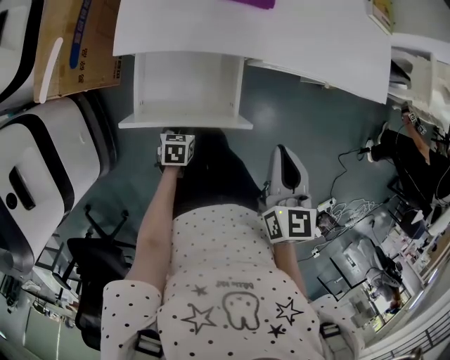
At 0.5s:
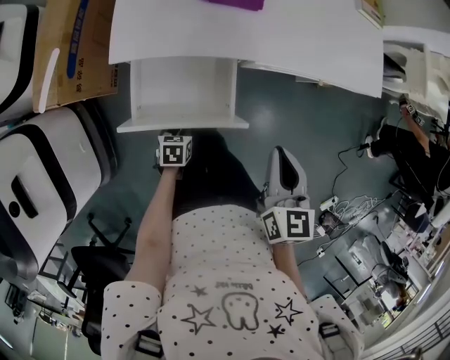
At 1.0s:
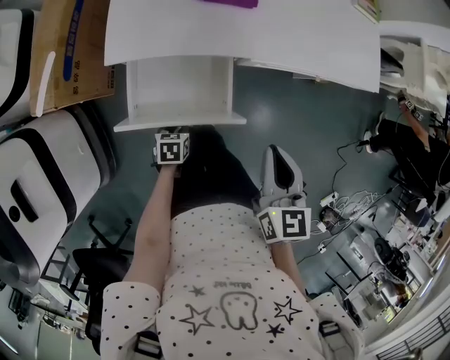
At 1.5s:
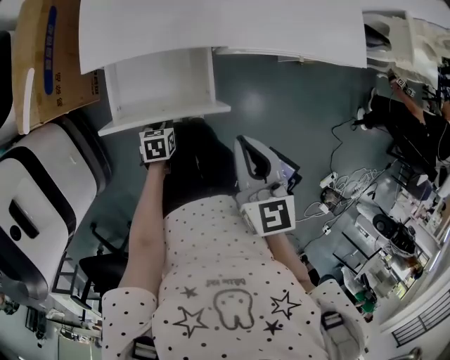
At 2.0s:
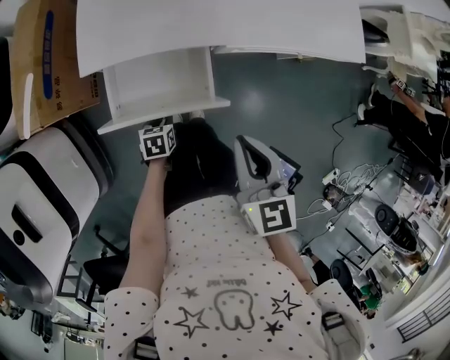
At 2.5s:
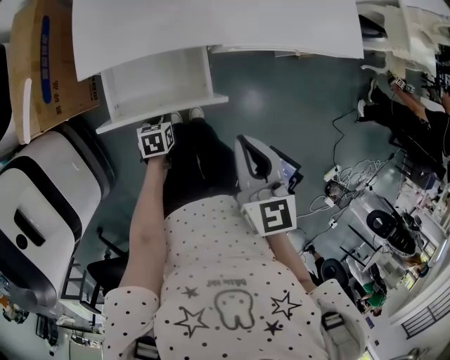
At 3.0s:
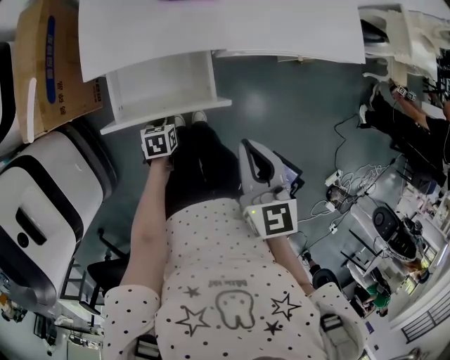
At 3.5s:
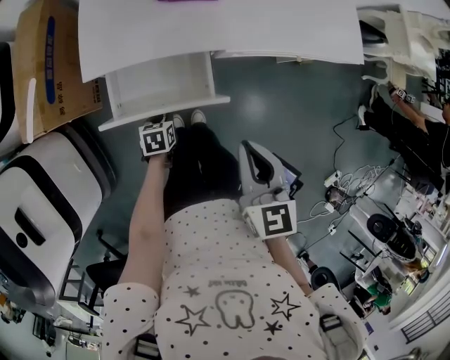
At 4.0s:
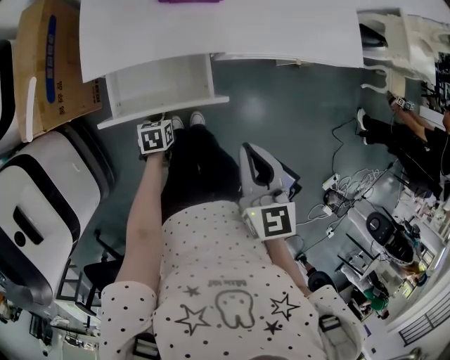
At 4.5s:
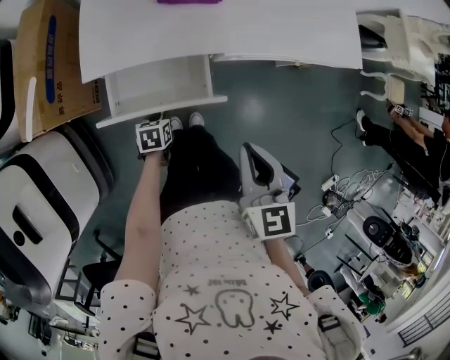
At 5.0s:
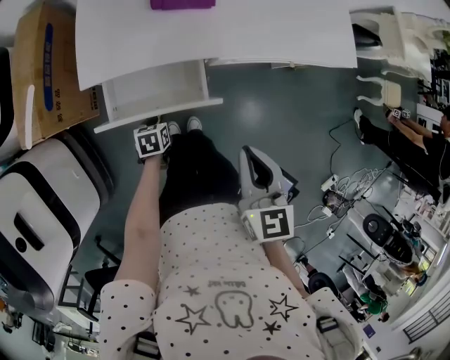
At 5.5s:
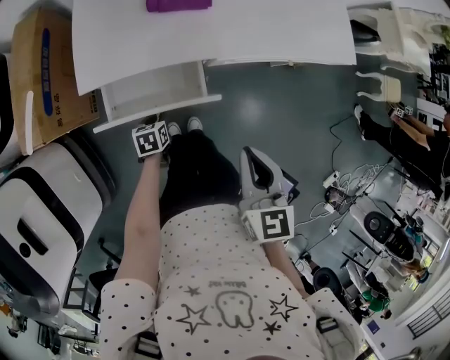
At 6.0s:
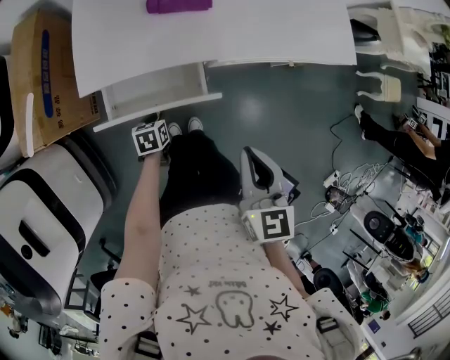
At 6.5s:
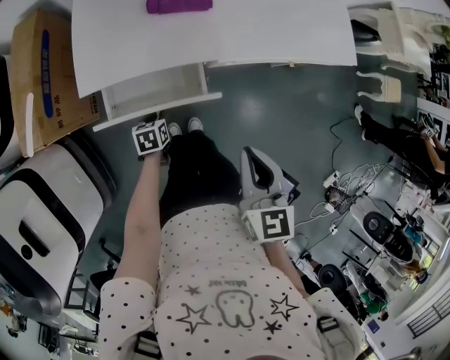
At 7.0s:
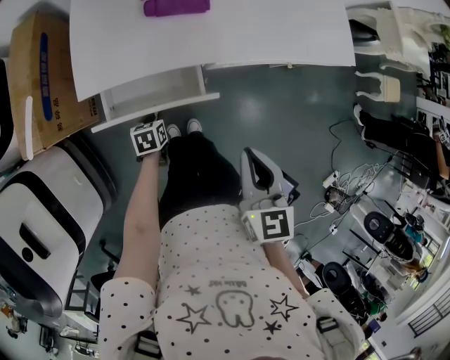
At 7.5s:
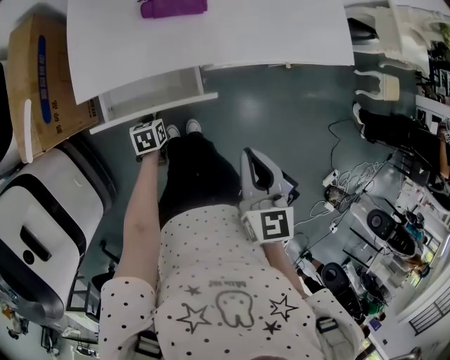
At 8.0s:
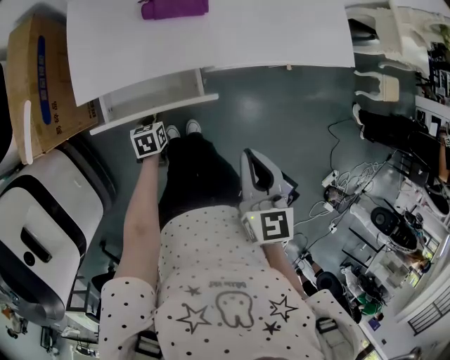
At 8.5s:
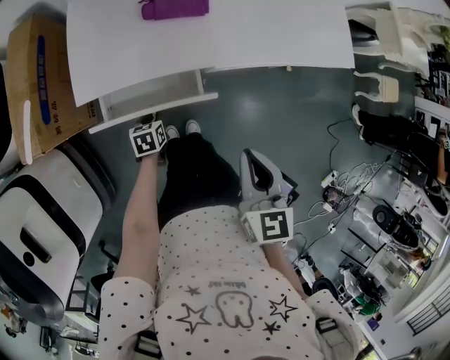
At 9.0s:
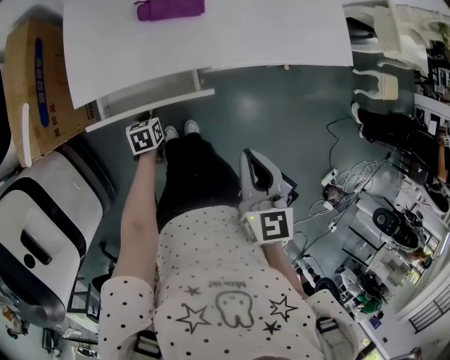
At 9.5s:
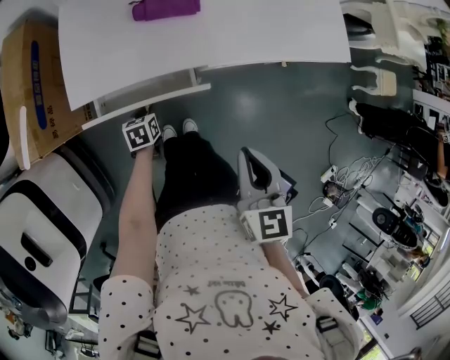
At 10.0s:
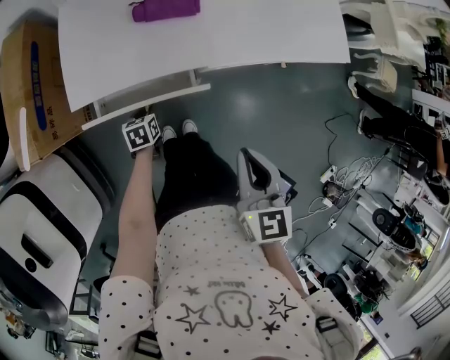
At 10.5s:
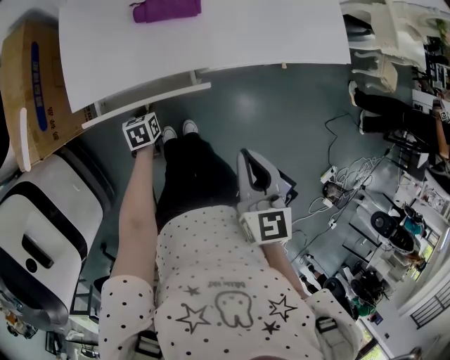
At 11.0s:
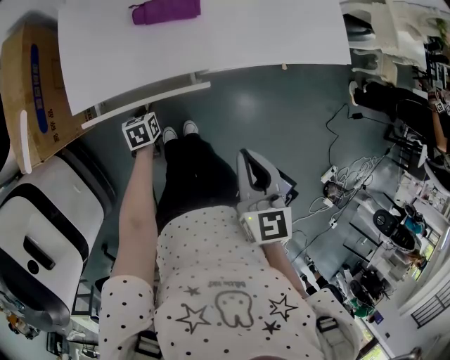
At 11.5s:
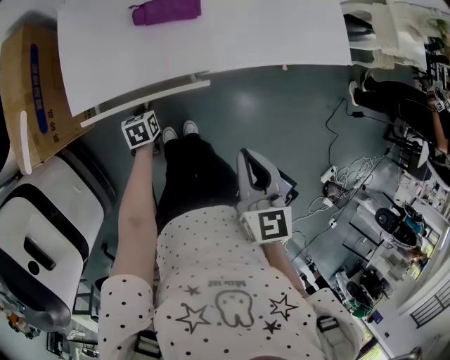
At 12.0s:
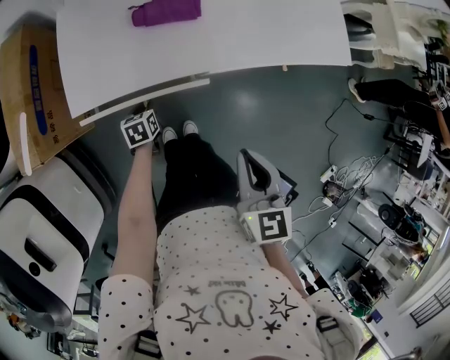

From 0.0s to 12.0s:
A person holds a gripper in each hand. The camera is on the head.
From 0.0s to 2.0s: The right gripper ends up some 5 cm from where it was.
From 2.0s to 4.0s: The grippers stay close to where they were, moving slightly.
From 4.0s to 8.0s: There are only small adjustments of the grippers.
From 8.0s to 12.0s: The grippers move only a little.

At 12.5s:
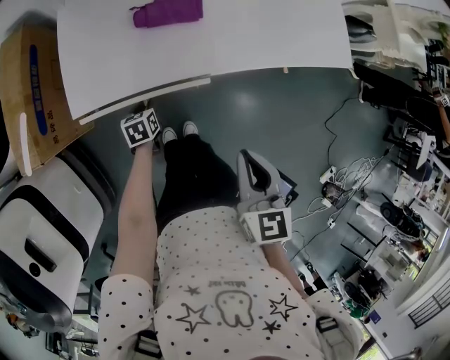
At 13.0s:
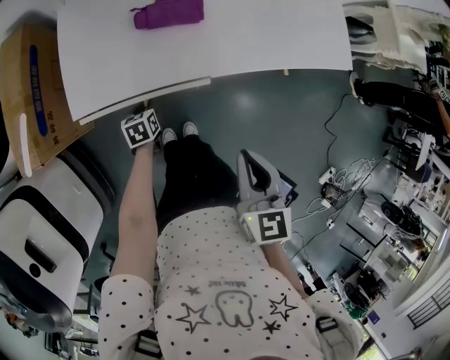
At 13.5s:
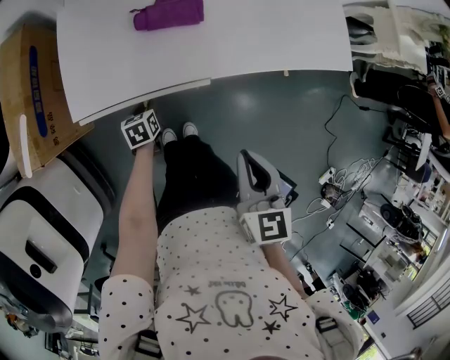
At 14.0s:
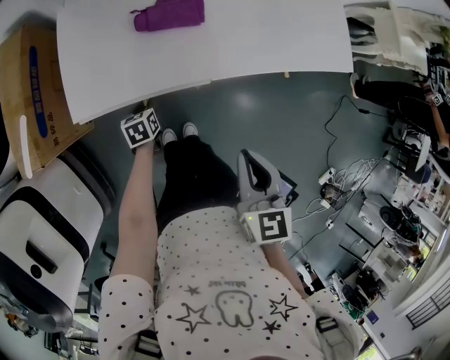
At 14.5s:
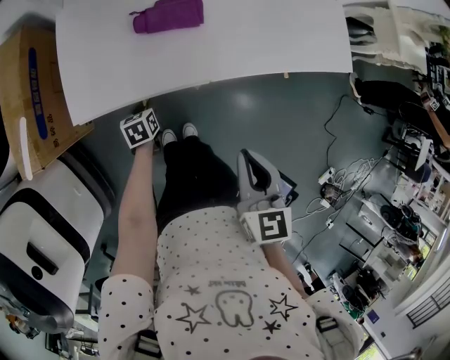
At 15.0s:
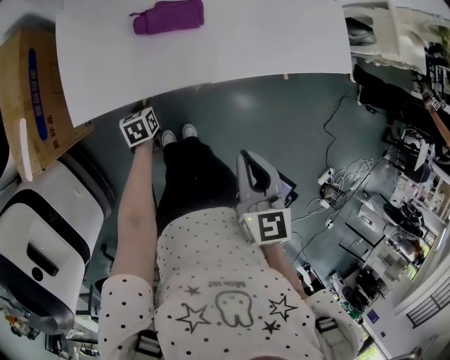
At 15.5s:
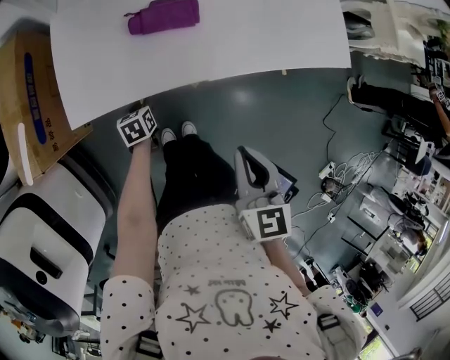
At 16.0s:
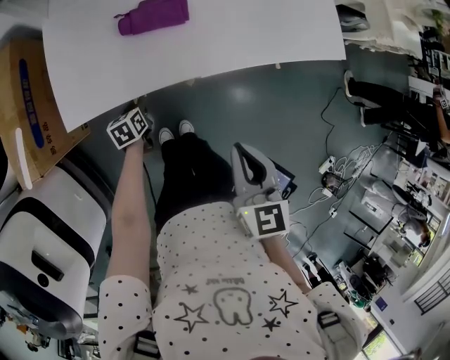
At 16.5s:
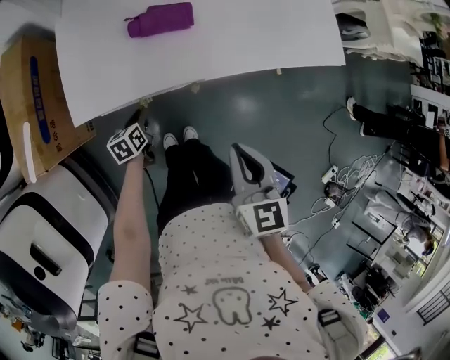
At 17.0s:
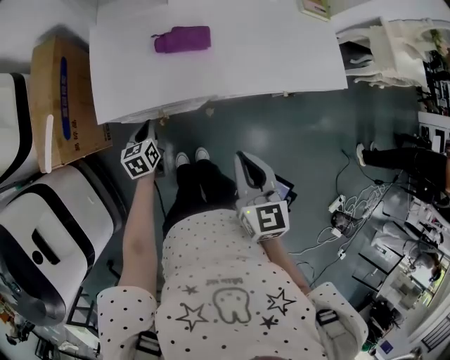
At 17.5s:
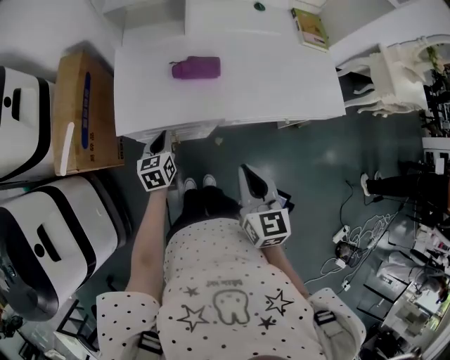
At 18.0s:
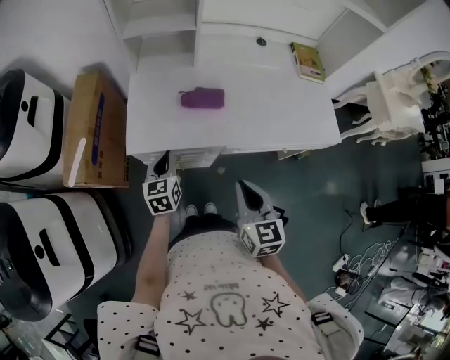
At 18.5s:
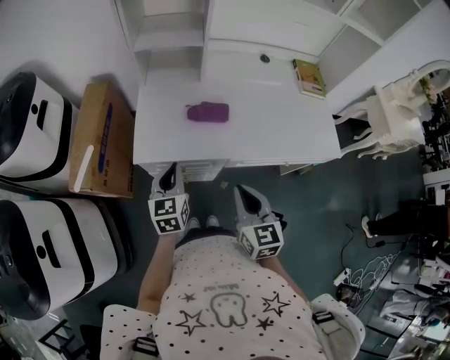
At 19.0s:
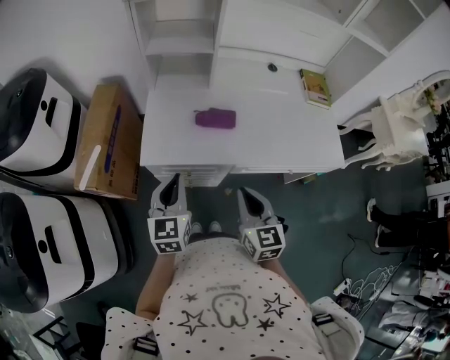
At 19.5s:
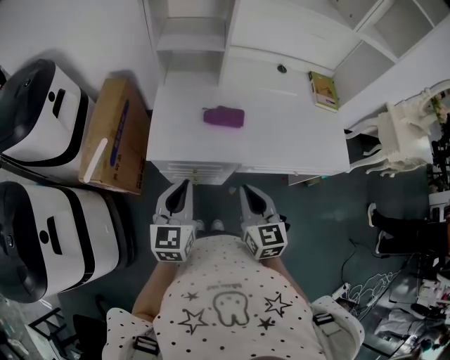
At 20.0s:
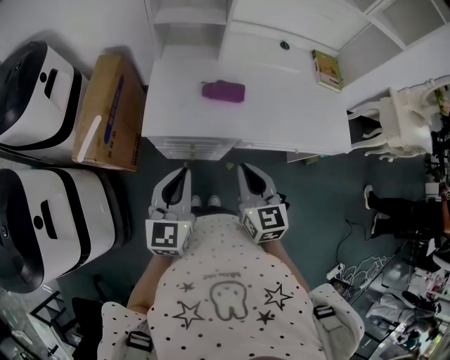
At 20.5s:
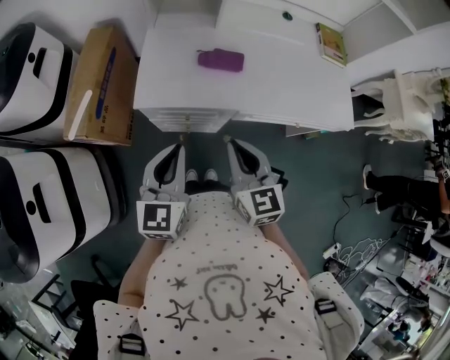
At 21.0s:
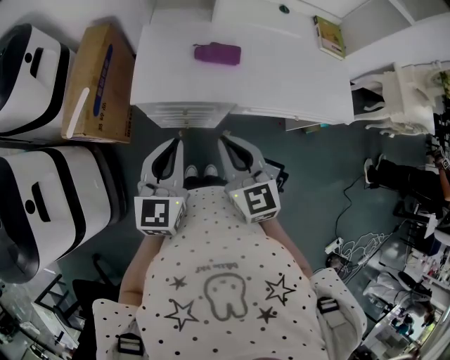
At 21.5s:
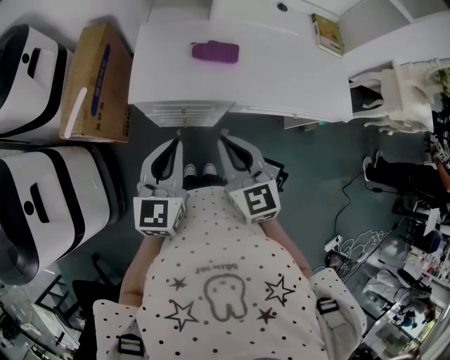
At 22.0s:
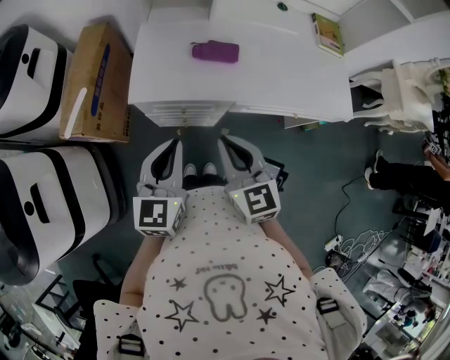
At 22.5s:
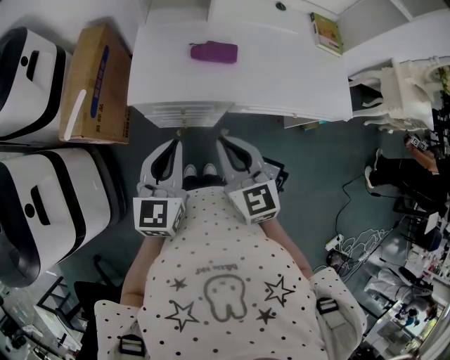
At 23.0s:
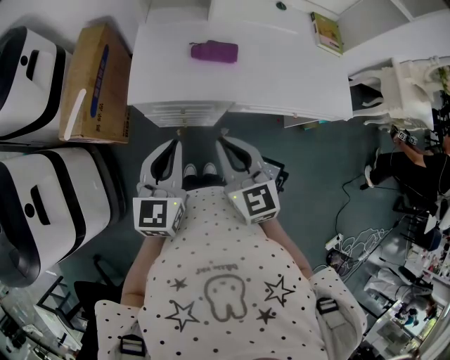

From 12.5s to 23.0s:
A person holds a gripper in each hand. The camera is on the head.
From 12.5s to 16.5s: The grippers stay close to where they were, moving slightly.
From 16.5s to 19.0s: The right gripper heads upward, covering some 5 cm; the left gripper shifts about 35 cm upward, and tilts its fingers approximately 30 degrees upward.
From 19.0s to 21.0s: The left gripper shifts some 5 cm backward. Meanwhile the right gripper heads to the left, covering about 5 cm.
From 21.0s to 23.0s: Both grippers stay about where they are.

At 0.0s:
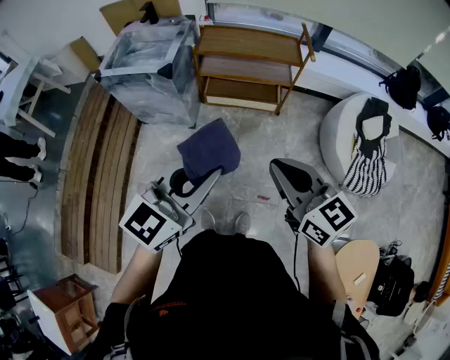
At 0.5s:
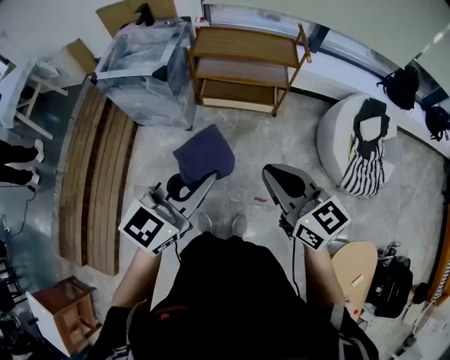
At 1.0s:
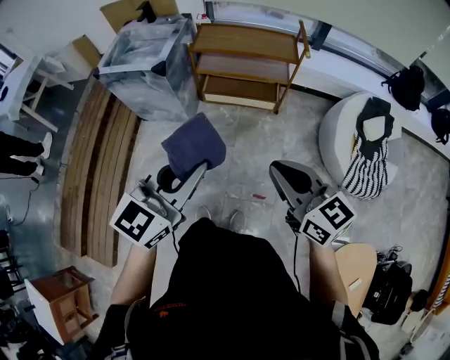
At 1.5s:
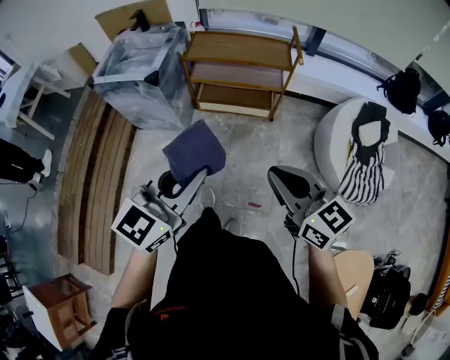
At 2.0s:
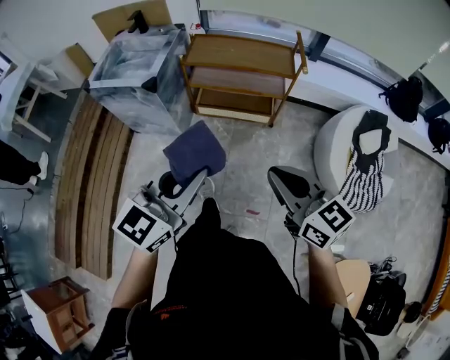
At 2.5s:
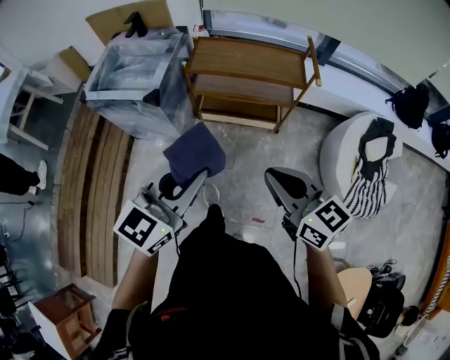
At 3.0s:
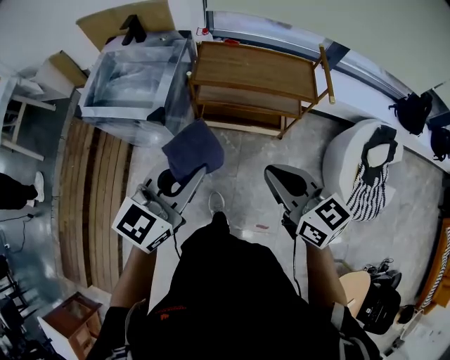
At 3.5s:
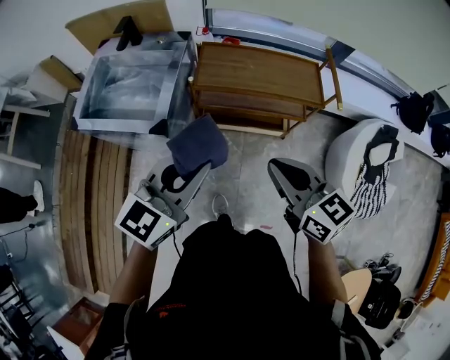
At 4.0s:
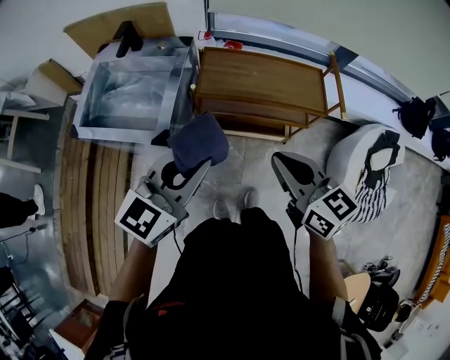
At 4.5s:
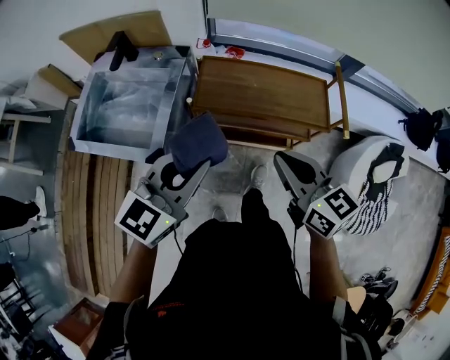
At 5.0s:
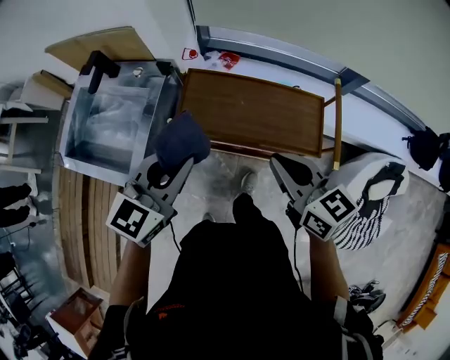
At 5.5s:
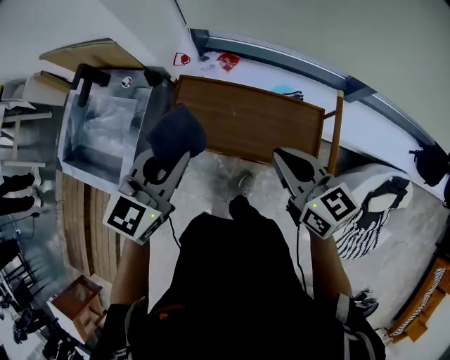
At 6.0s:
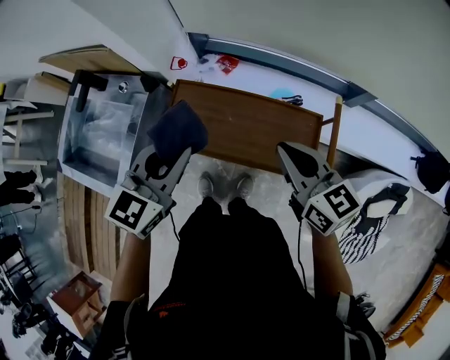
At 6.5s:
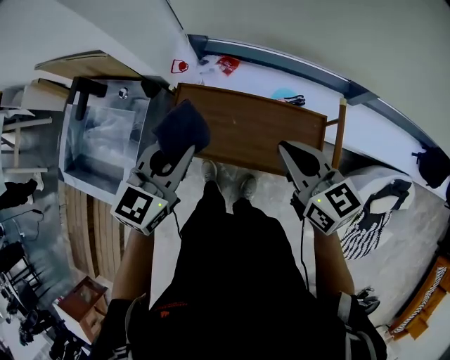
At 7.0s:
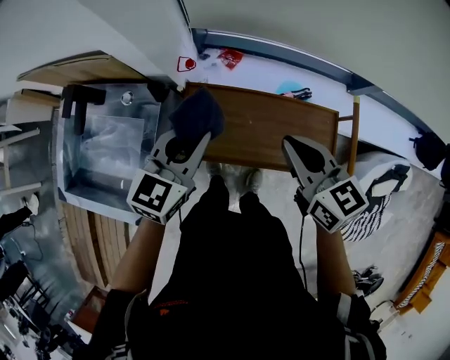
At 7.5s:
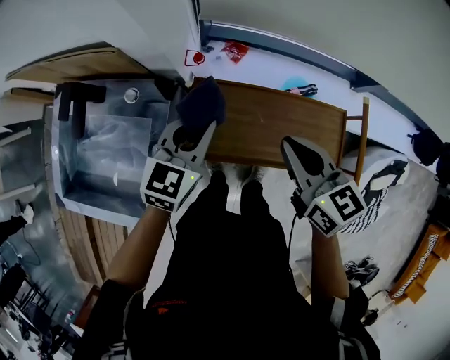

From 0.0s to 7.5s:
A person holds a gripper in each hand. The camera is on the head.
From 0.0s to 2.0s: The right gripper is displaced to the right and forward by about 10 cm. The left gripper shifts some 10 cm forward and to the right.
From 2.0s to 4.0s: Both grippers travel together forward and to the left, some 40 cm.
From 4.0s to 5.5s: The two grippers go some 35 cm forward and to the right.
From 5.5s to 7.5s: The left gripper moves forward, downward and to the left, about 25 cm; the right gripper goes about 20 cm to the left and forward.
